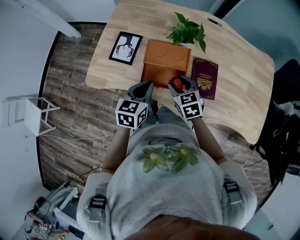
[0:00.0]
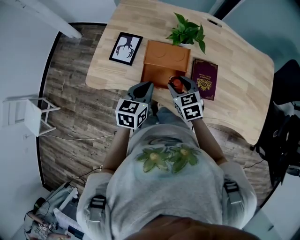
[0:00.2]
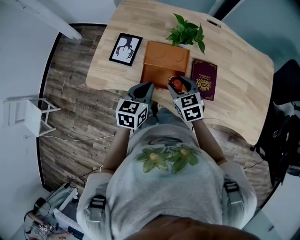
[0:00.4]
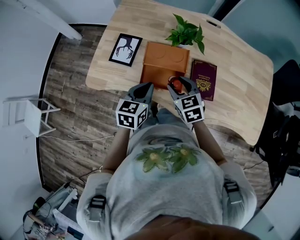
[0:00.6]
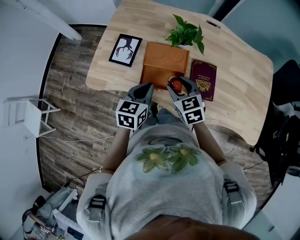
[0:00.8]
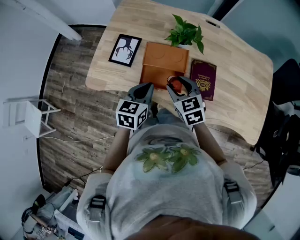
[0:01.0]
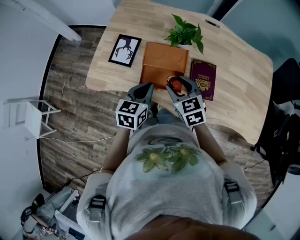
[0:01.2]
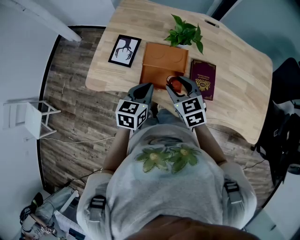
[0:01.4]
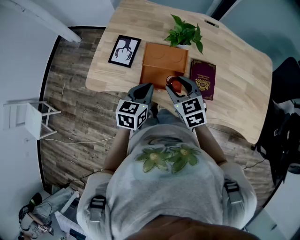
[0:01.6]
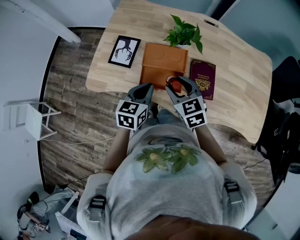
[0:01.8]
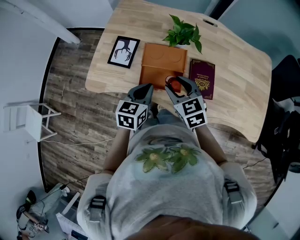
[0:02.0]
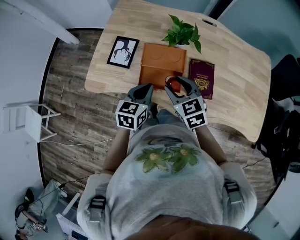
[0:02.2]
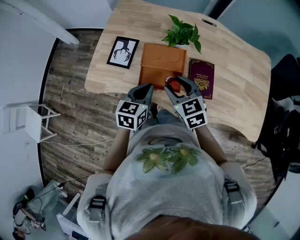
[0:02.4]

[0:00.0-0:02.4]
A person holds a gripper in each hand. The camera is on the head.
0:00.0 to 0:01.2: The right gripper shifts some 5 cm upward.
0:01.2 to 0:02.4: There are only small adjustments of the grippers.

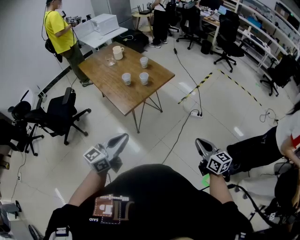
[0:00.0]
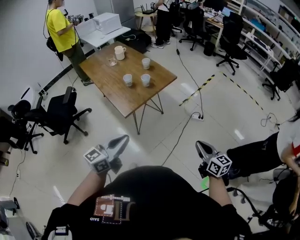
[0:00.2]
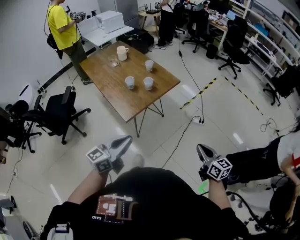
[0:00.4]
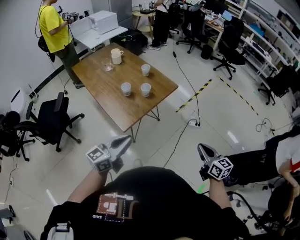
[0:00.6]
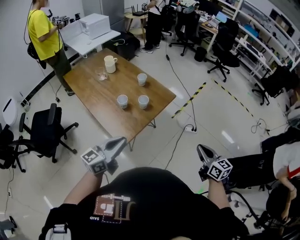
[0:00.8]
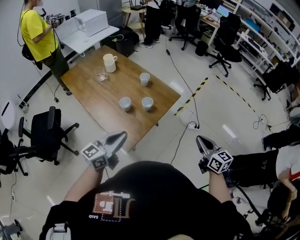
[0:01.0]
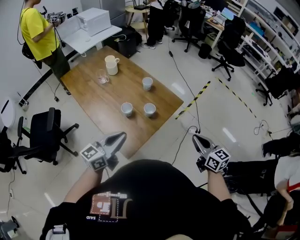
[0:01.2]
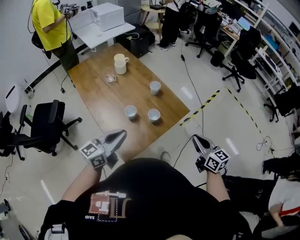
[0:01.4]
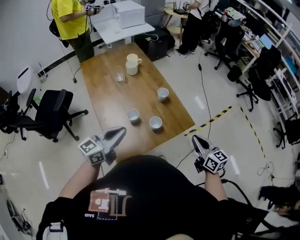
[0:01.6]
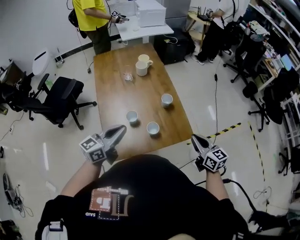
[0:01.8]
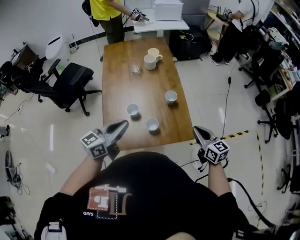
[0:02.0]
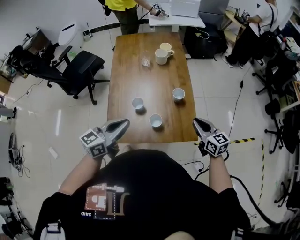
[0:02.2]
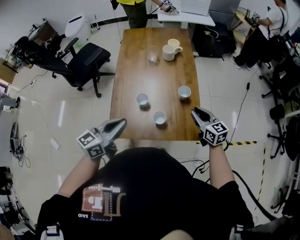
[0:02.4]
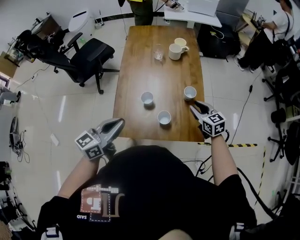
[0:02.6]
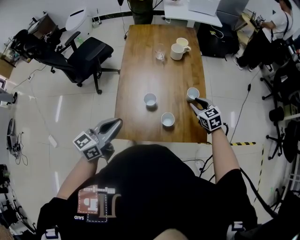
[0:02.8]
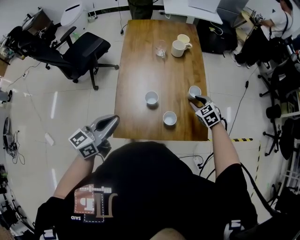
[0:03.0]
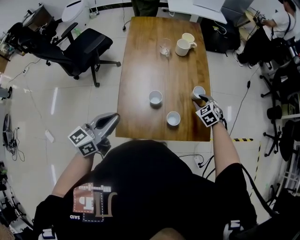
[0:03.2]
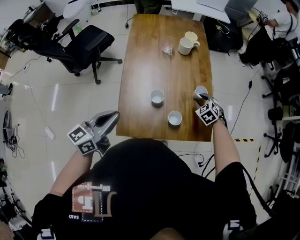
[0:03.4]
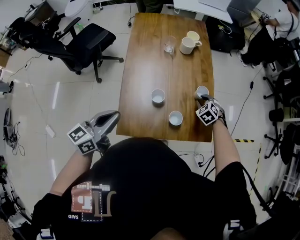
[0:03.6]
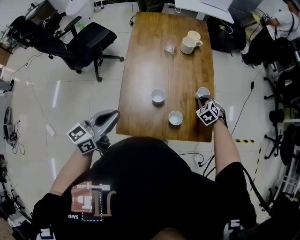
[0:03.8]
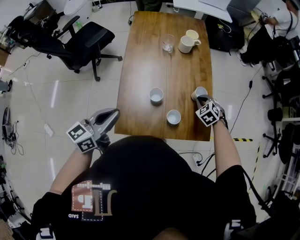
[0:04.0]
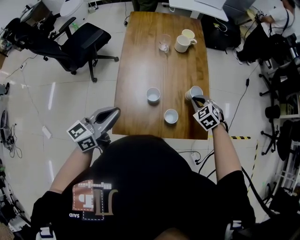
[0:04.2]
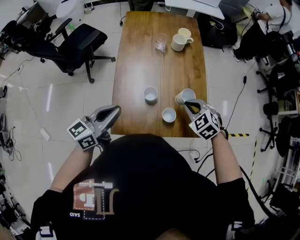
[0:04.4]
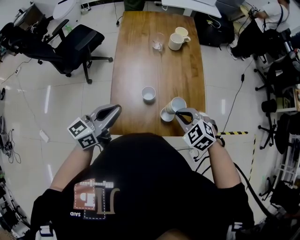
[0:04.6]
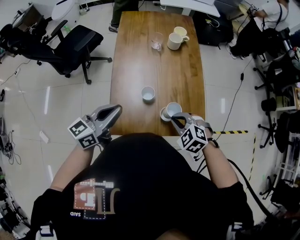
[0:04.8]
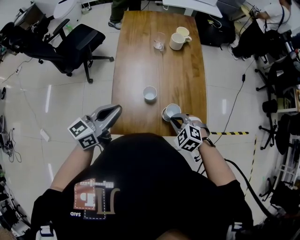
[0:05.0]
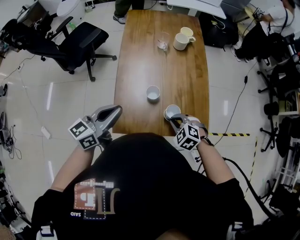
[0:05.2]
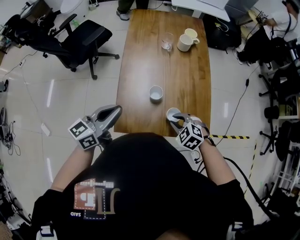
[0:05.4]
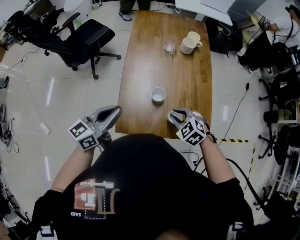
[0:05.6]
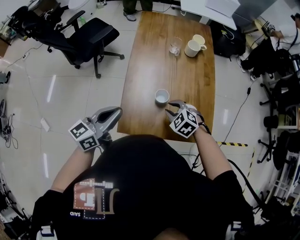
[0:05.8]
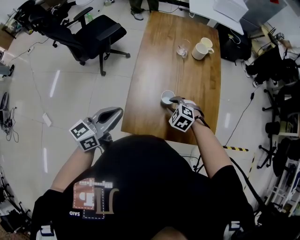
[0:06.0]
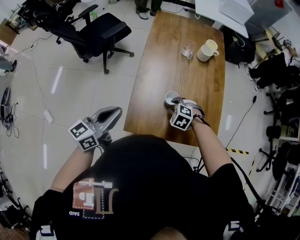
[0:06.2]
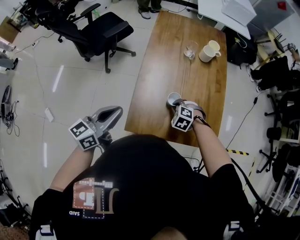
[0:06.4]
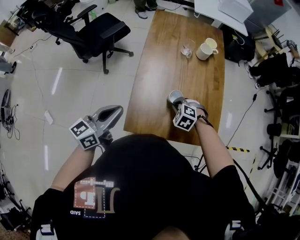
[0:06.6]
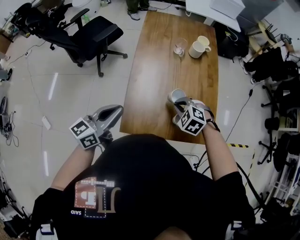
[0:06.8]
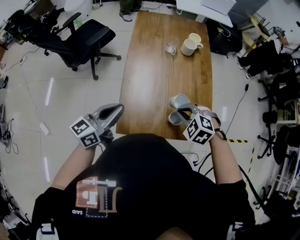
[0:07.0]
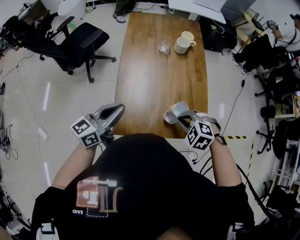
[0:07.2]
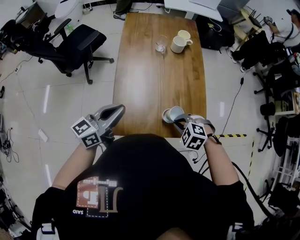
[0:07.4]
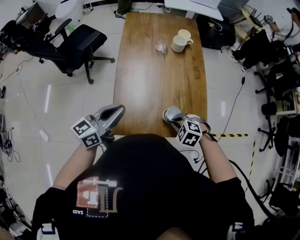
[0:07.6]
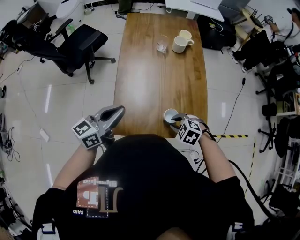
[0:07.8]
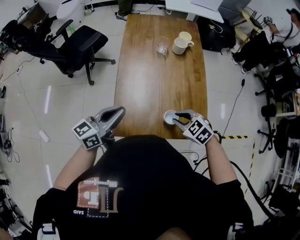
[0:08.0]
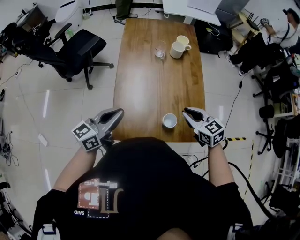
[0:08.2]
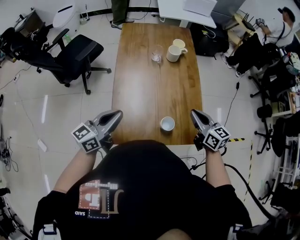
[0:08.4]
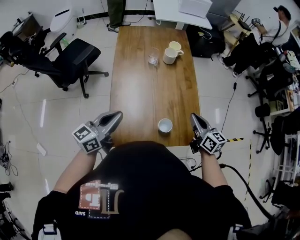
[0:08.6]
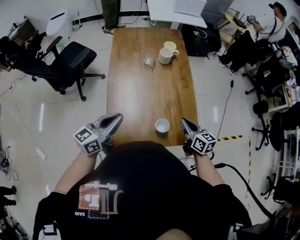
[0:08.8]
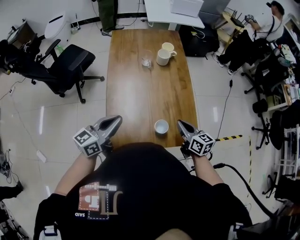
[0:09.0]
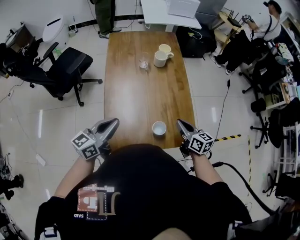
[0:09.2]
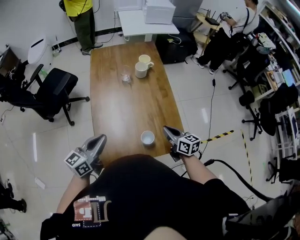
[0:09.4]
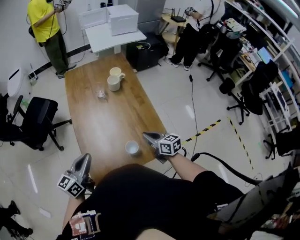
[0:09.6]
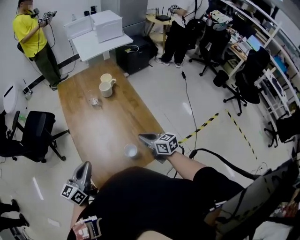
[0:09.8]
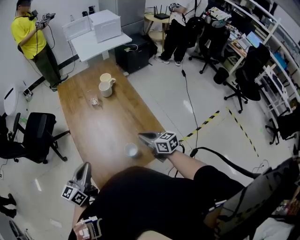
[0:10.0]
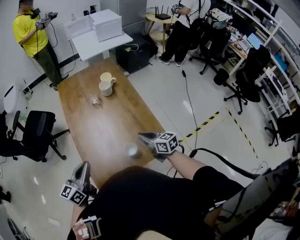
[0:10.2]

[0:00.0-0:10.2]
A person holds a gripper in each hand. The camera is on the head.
0:00.0 to 0:01.4: The two grippers go roughly 40 cm forward.
0:01.4 to 0:03.0: The left gripper rotates about 40 degrees. The right gripper shifts by roughly 40 cm, angles its fingers downward, by approximately 30 degrees, and opens its fingers.
0:03.0 to 0:04.4: The right gripper is displaced upward, backward and to the left by about 10 cm, and closes up.
0:04.4 to 0:05.8: The left gripper moves about 5 cm. The right gripper travels to the left and downward by some 15 cm, and opens its fingers.
0:05.8 to 0:07.2: The right gripper moves to the right, backward and upward, about 10 cm, and closes.
0:07.2 to 0:08.8: The right gripper swings up and down, about 15 cm each way, with 2 reversals, and rotates around the line of its fingers by about 70 degrees, clockwise from behind.
0:08.8 to 0:10.2: The grippers make only small movements.

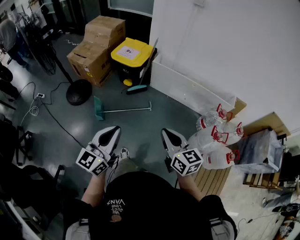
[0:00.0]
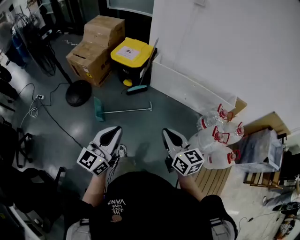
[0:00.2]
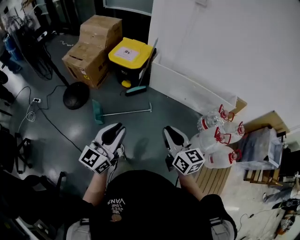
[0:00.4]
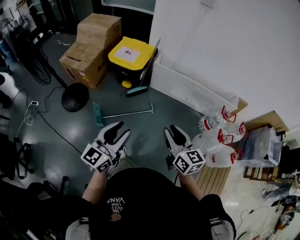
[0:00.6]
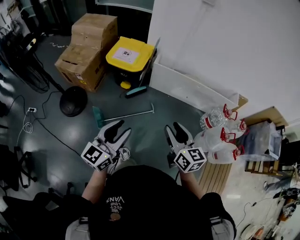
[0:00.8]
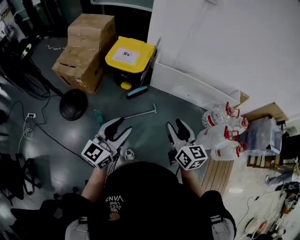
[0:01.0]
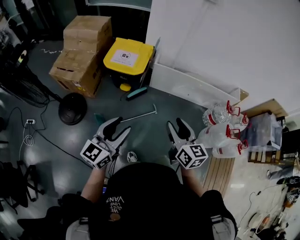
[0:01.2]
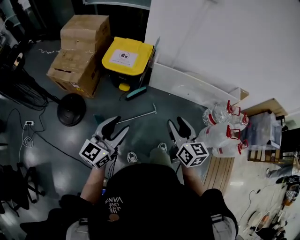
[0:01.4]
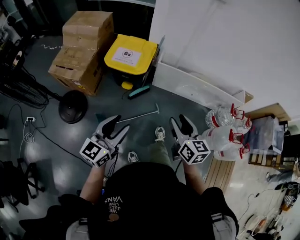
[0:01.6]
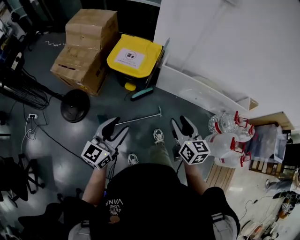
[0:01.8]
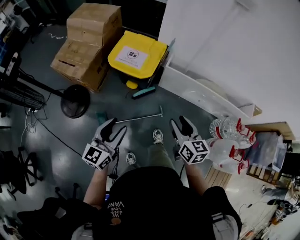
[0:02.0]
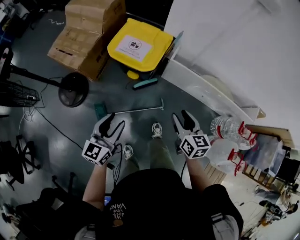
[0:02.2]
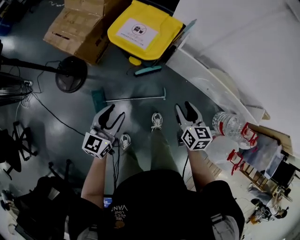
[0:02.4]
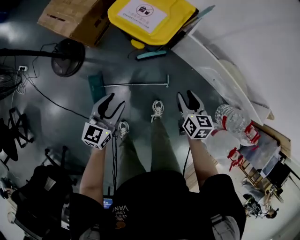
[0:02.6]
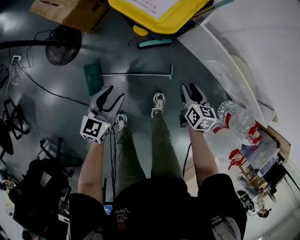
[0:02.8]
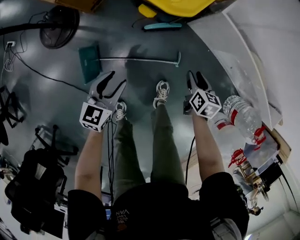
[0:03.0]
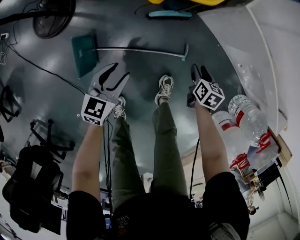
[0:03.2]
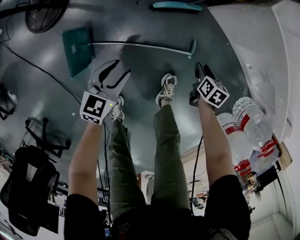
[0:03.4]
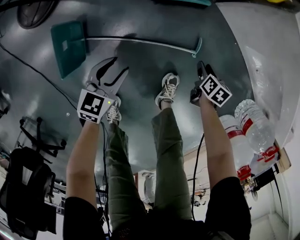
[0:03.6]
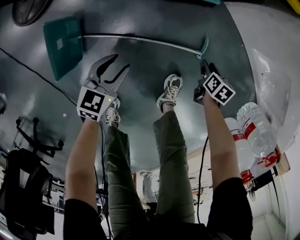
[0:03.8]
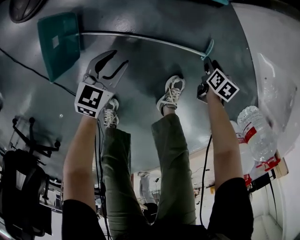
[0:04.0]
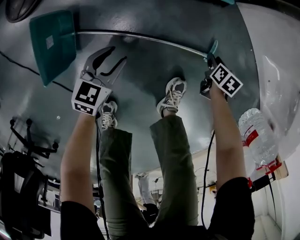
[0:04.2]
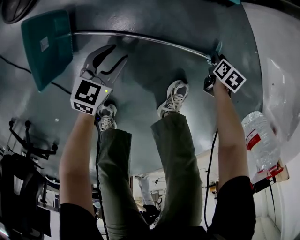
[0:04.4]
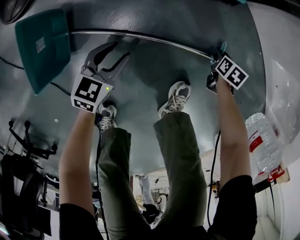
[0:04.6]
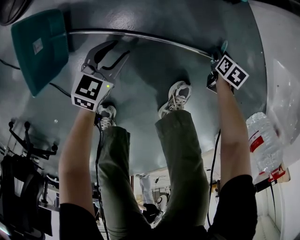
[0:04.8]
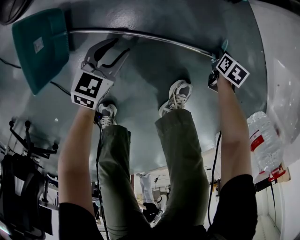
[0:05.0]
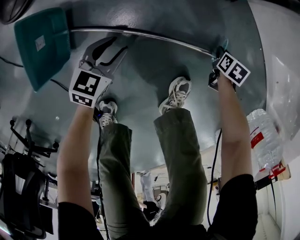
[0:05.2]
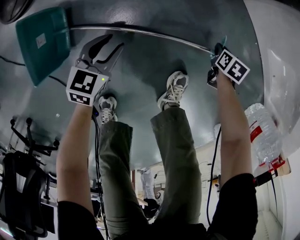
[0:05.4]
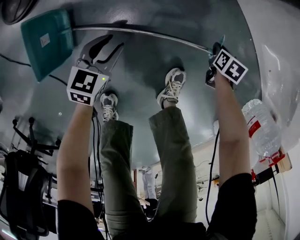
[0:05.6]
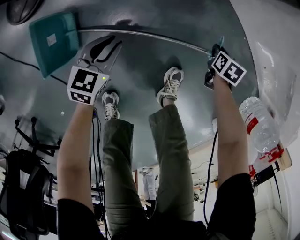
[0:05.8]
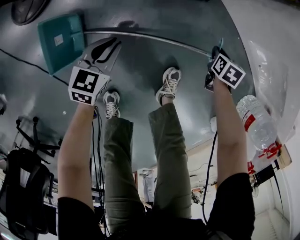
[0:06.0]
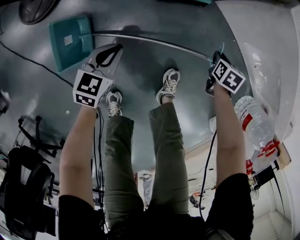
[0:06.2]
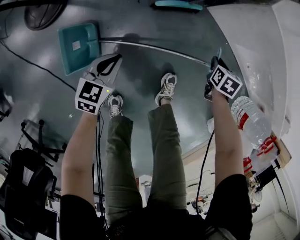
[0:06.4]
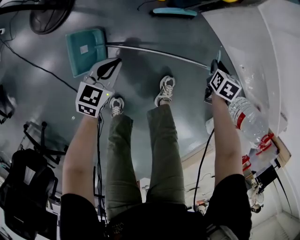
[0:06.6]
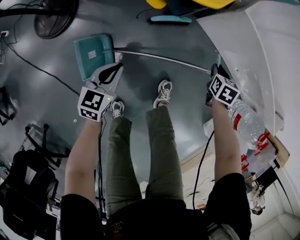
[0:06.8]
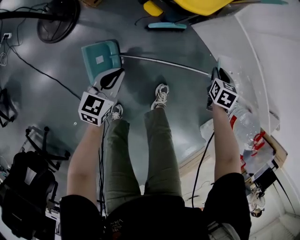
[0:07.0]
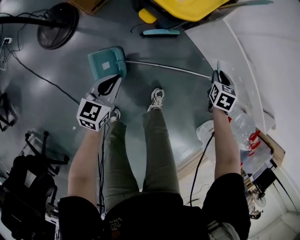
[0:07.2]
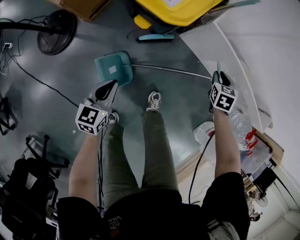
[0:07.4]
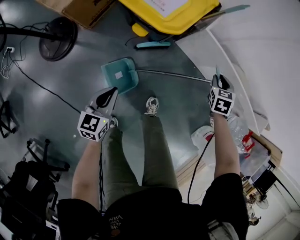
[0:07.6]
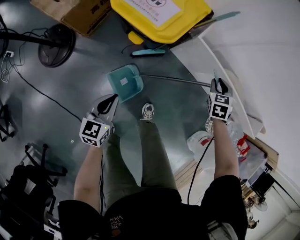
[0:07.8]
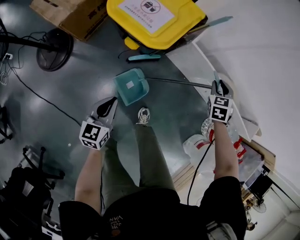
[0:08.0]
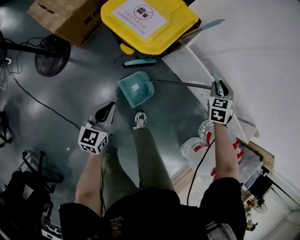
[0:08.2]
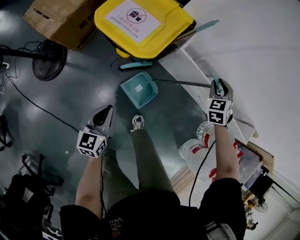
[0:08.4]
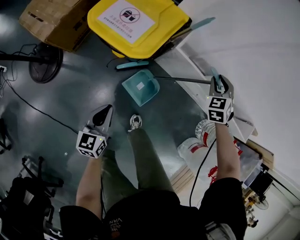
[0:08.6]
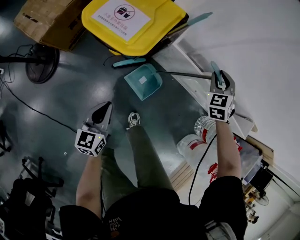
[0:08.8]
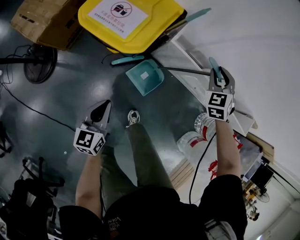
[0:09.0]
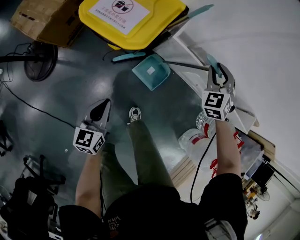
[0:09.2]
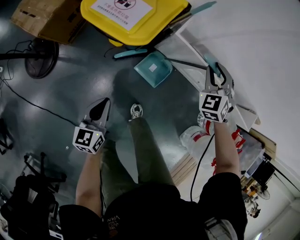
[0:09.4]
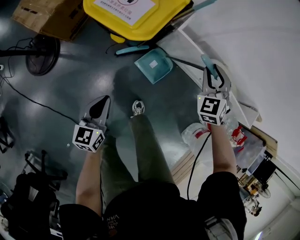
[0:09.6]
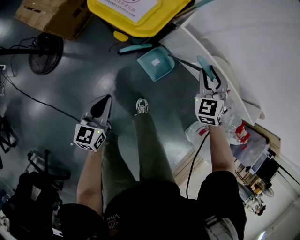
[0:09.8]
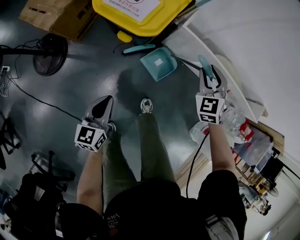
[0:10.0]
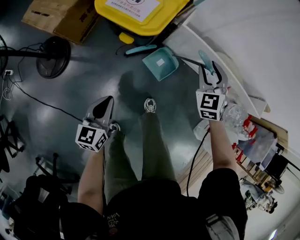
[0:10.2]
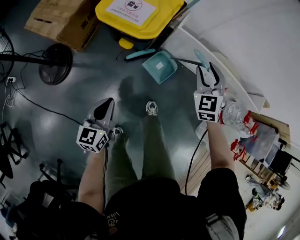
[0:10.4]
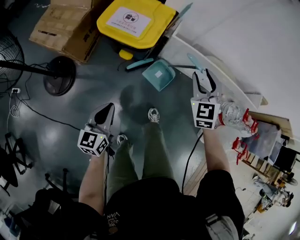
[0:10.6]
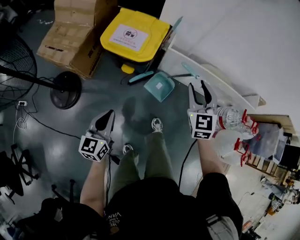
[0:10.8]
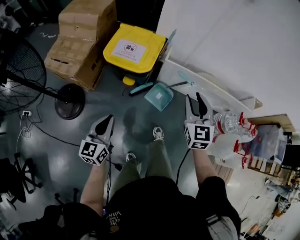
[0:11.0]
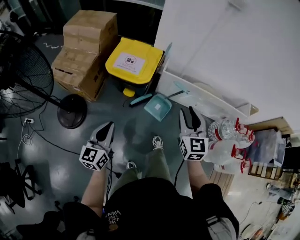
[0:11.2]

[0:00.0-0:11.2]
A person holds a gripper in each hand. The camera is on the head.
0:00.0 to 0:01.6: The grippers both shift forward and to the left by about 30 cm. The left gripper opens its fingers; the right gripper rotates approximately 20 degrees, and opens its fingers.
0:01.6 to 0:03.2: The right gripper moves downward and forward, approximately 60 cm, and points its fingers approximately 40 degrees further downward. Meanwhile the left gripper shifts roughly 50 cm downward, and tips its fingers downward by roughly 30 degrees.
0:03.2 to 0:04.8: The grippers both shift downward by about 35 cm.
0:04.8 to 0:06.4: The two grippers go roughly 25 cm upward. The right gripper closes its fingers. The left gripper closes.
0:06.4 to 0:08.0: The right gripper shifts some 35 cm upward and forward, and changes its angle by some 30 degrees. Meanwhile the left gripper heads upward, covering roughly 20 cm.
0:08.0 to 0:09.6: The right gripper shifts approximately 5 cm upward, reaches roughly 5 cm forward, then returns, and changes its angle by about 20 degrees.
0:09.6 to 0:11.2: The left gripper moves upward and backward, some 25 cm. The right gripper goes approximately 35 cm backward and upward, and rolls clockwise, seen from behind, by about 40 degrees.
